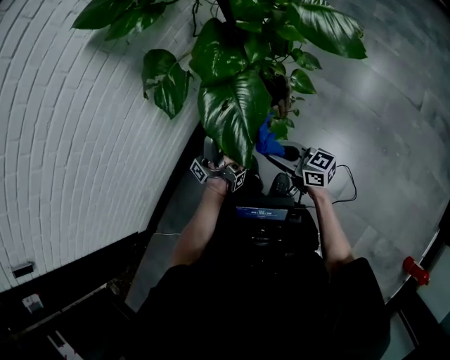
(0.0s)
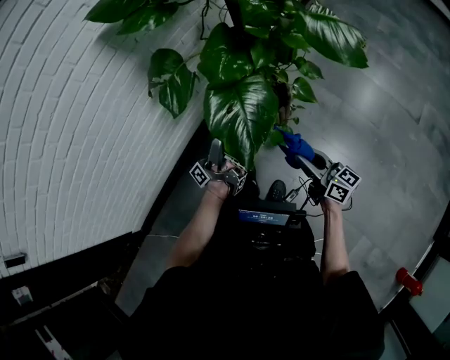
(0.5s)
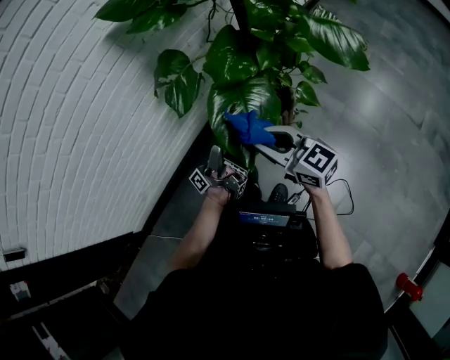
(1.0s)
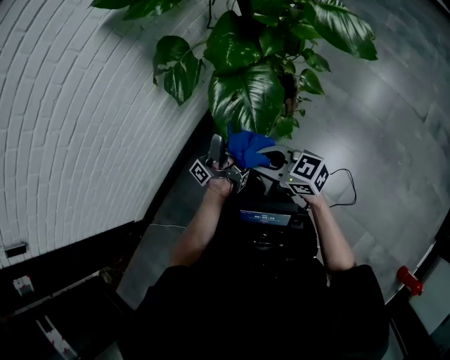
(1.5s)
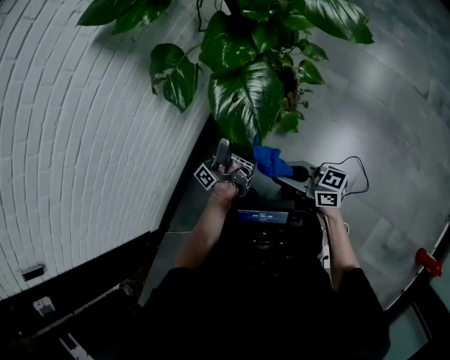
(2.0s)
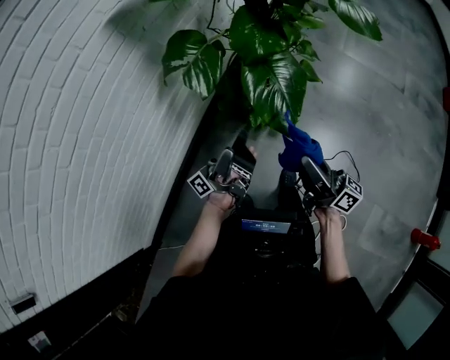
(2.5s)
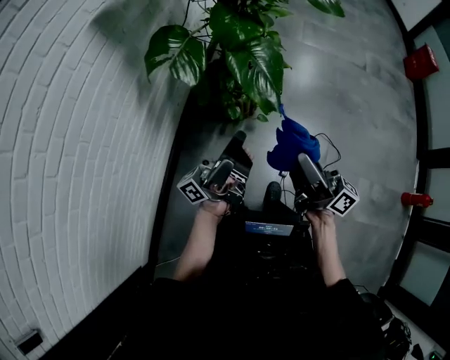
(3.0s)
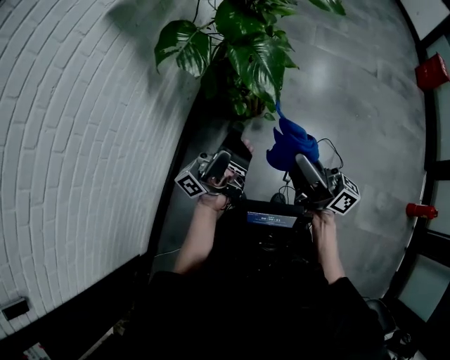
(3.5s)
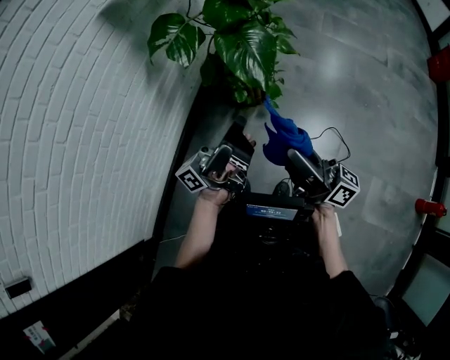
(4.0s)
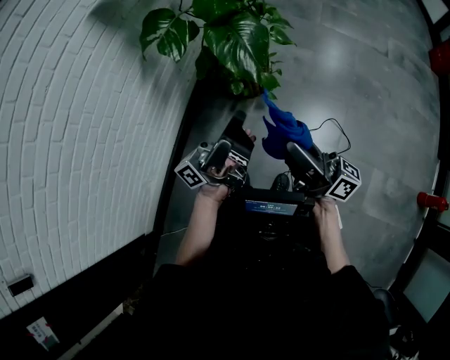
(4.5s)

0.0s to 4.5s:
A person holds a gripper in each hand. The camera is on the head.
0.0s to 2.0s: The right gripper travels upward and back again, roughly 15 cm each way.
2.0s to 4.5s: The right gripper ends up approximately 25 cm from where it was, and rotates about 40 degrees.

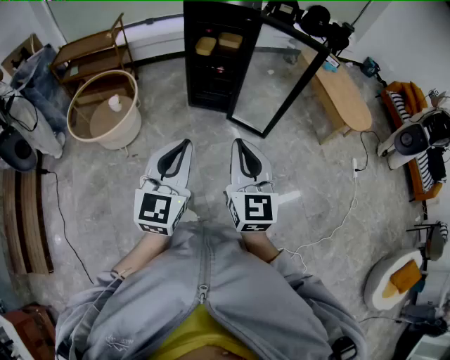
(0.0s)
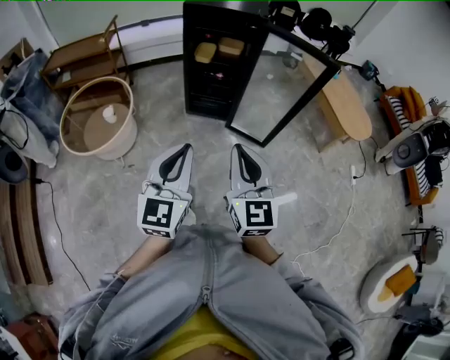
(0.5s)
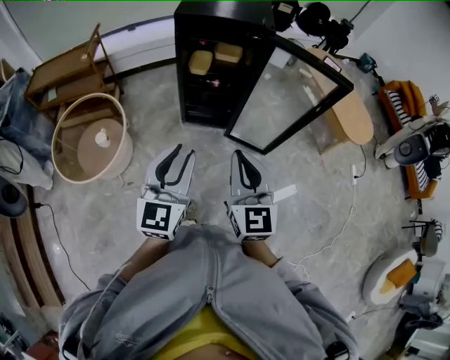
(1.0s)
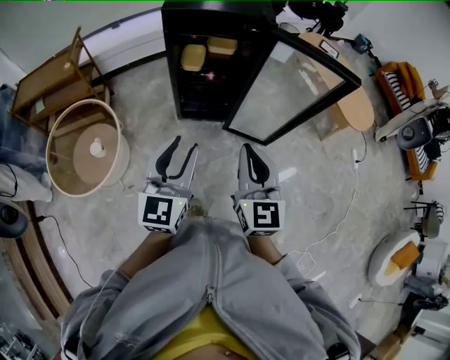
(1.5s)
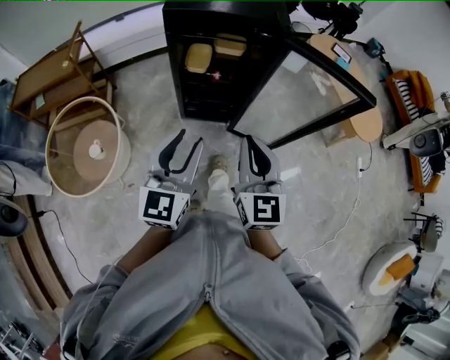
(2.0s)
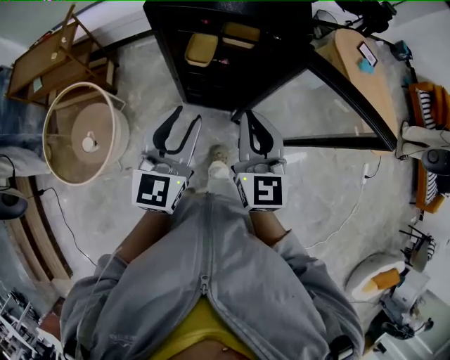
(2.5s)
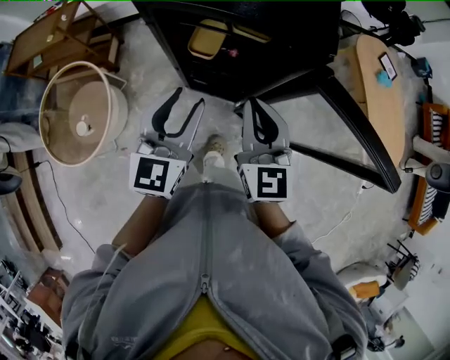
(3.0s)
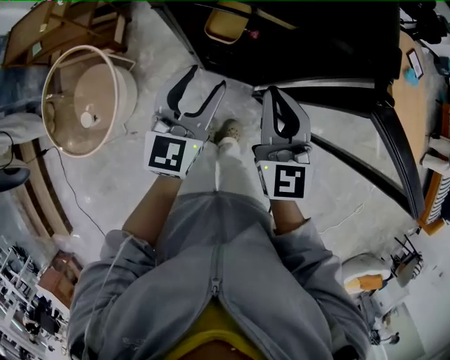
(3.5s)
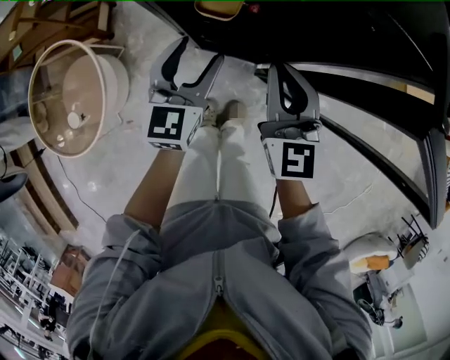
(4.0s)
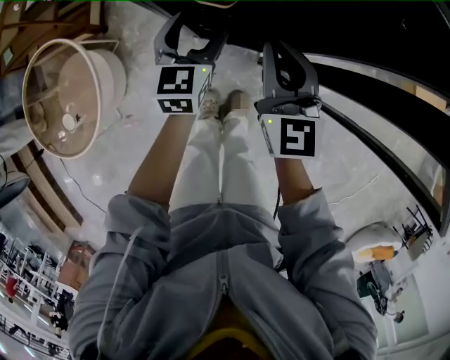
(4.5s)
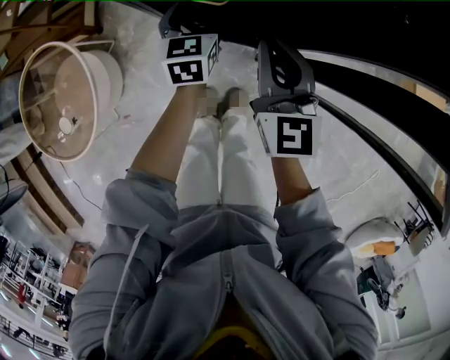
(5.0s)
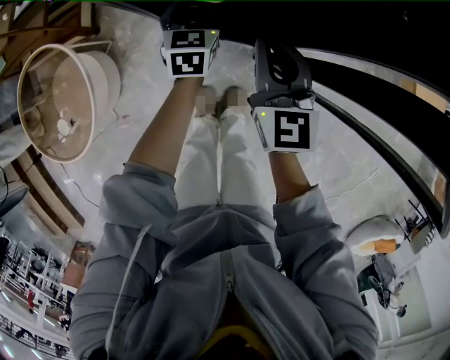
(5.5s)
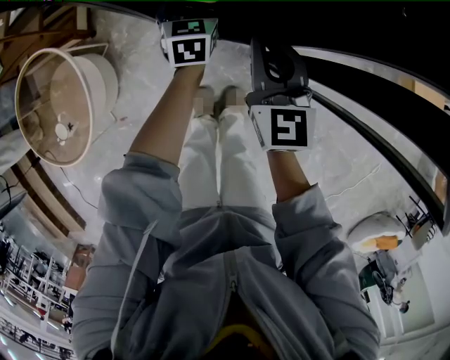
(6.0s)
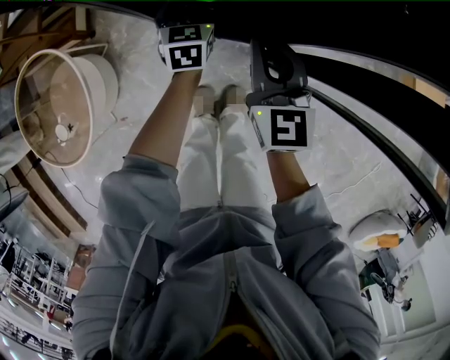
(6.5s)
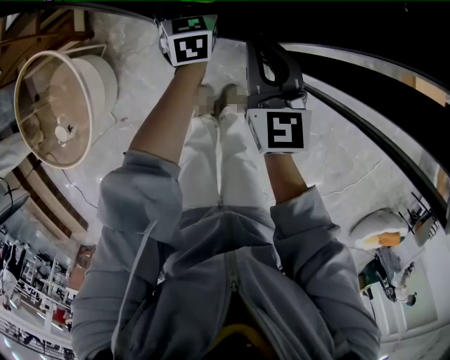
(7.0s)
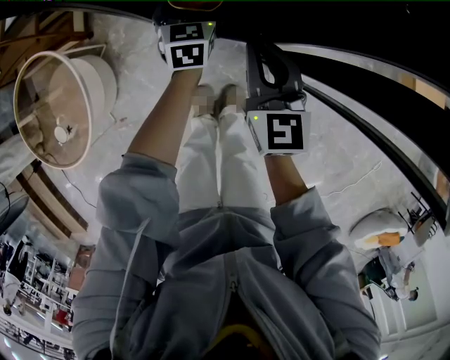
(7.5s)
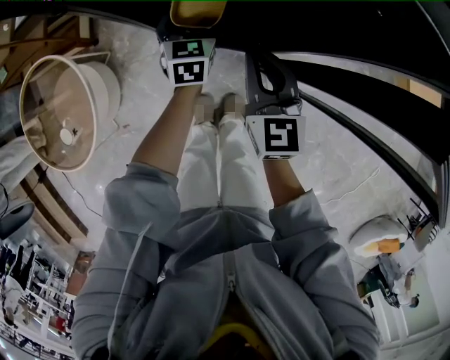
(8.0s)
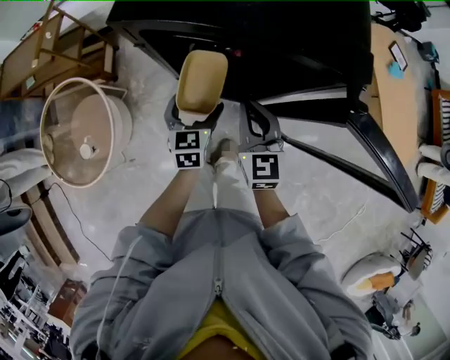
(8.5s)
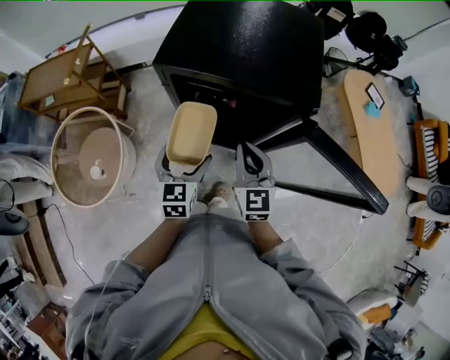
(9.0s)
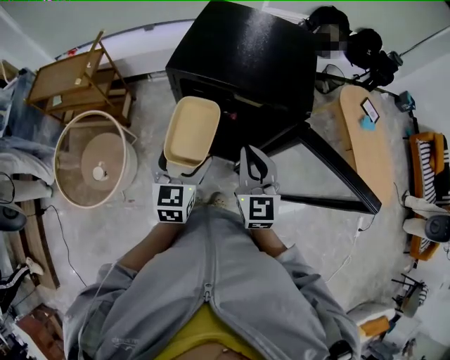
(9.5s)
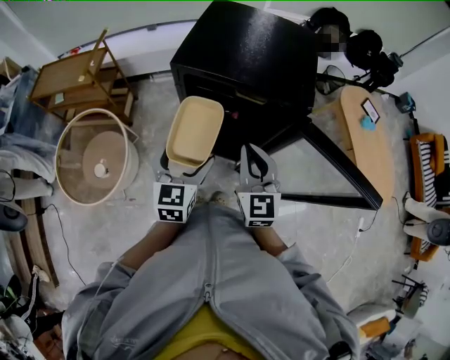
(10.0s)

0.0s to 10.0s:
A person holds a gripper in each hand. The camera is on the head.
0.0s to 2.0s: Both grippers are carried forward, some 40 cm.
2.0s to 4.0s: Both grippers move forward and downward, some 40 cm.
4.0s to 6.0s: The left gripper goes roughly 20 cm downward and forward, rotates about 20 degrees, and opens its fingers, while the right gripper moves downward, approximately 10 cm.
6.0s to 8.0s: The grippers stay close to where they were, moving slightly.
8.0s to 10.0s: The left gripper moves upward and backward, roughly 40 cm, while the right gripper travels upward by approximately 25 cm.

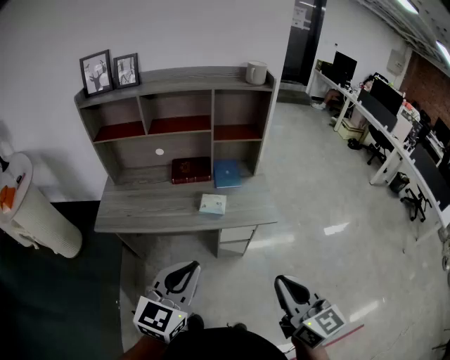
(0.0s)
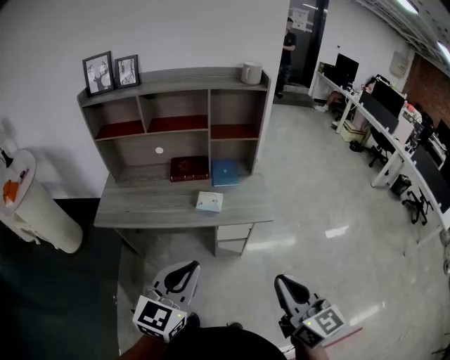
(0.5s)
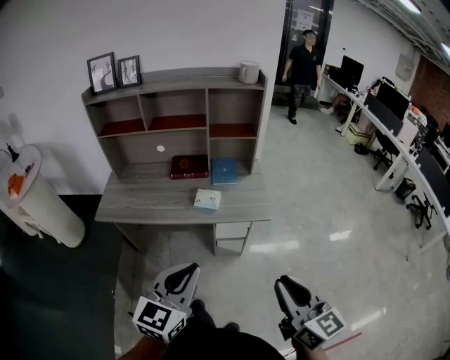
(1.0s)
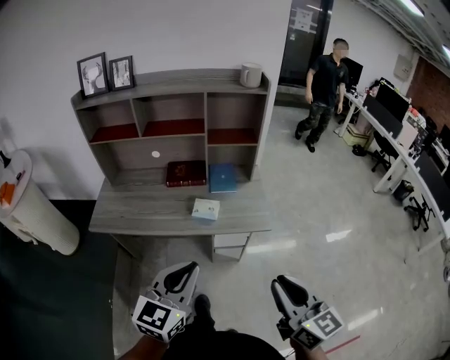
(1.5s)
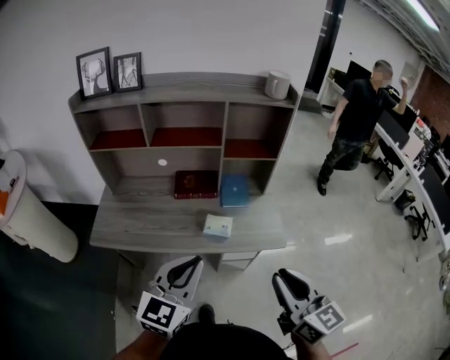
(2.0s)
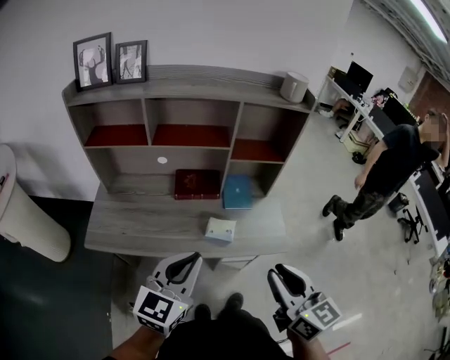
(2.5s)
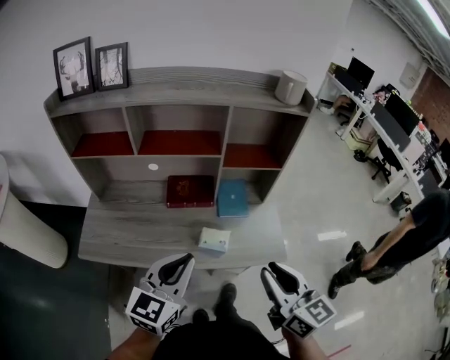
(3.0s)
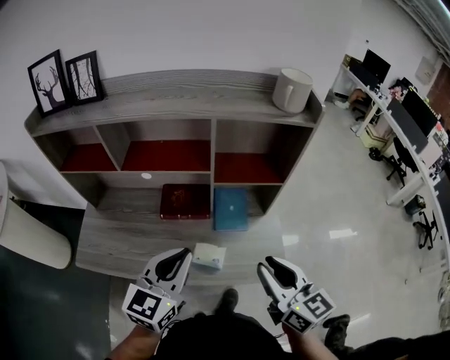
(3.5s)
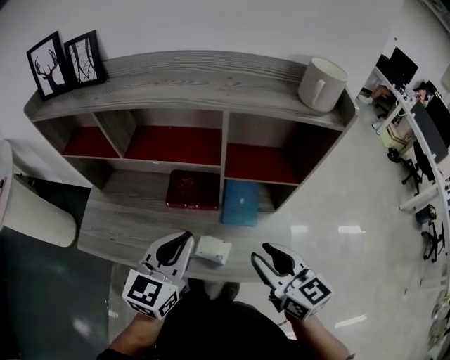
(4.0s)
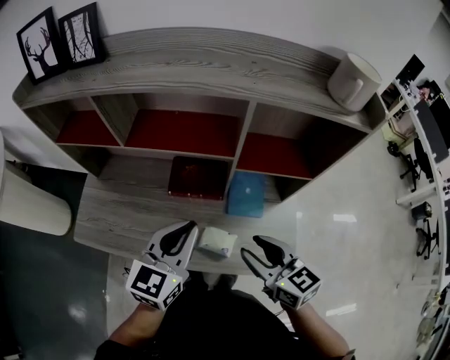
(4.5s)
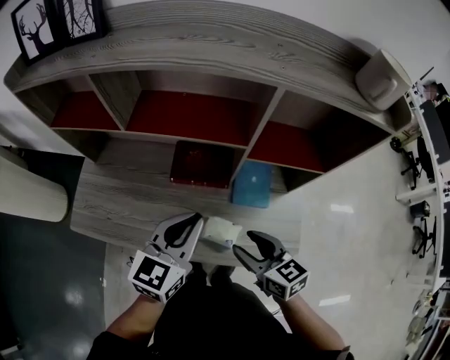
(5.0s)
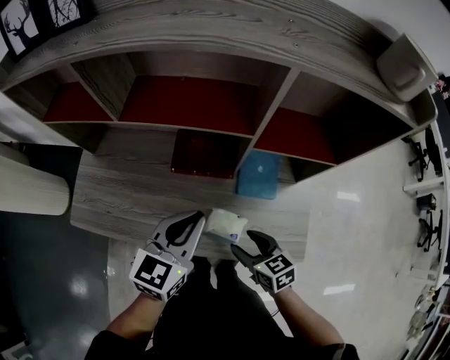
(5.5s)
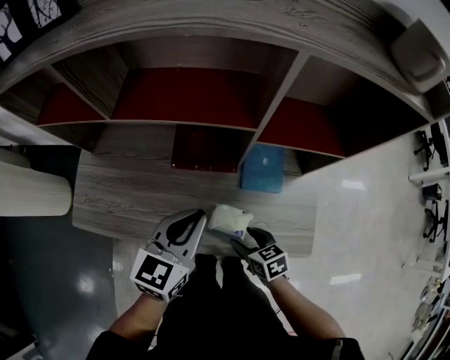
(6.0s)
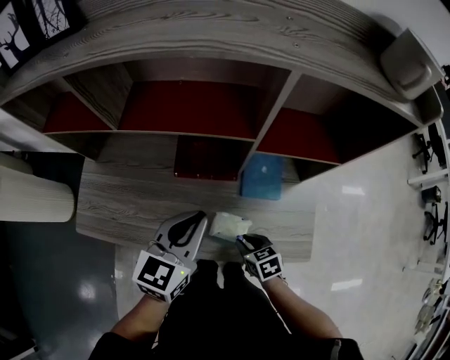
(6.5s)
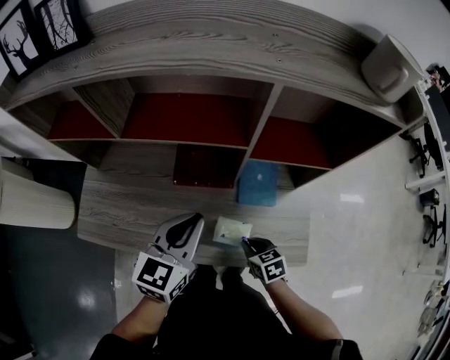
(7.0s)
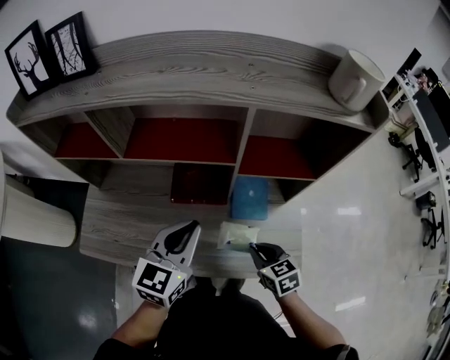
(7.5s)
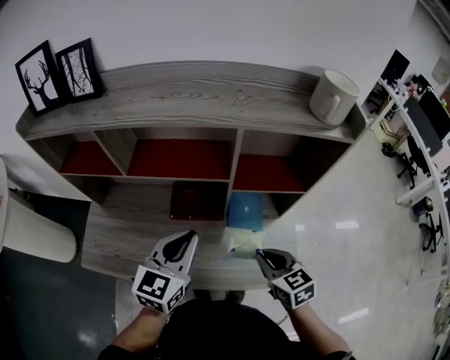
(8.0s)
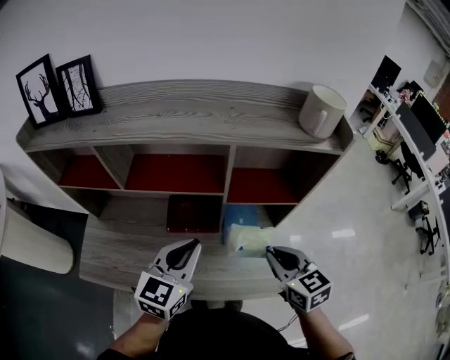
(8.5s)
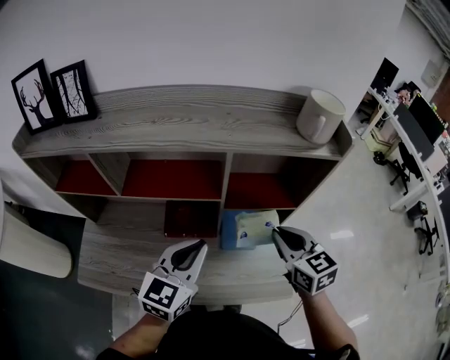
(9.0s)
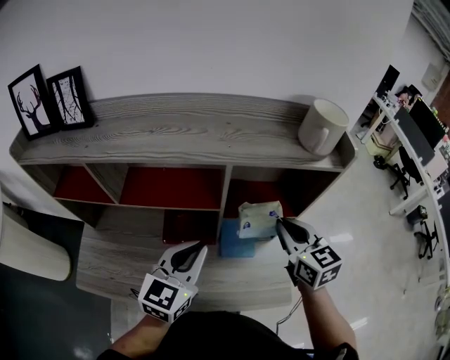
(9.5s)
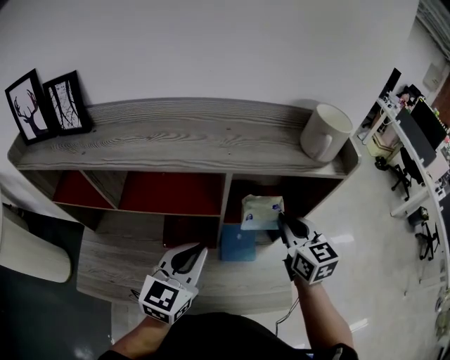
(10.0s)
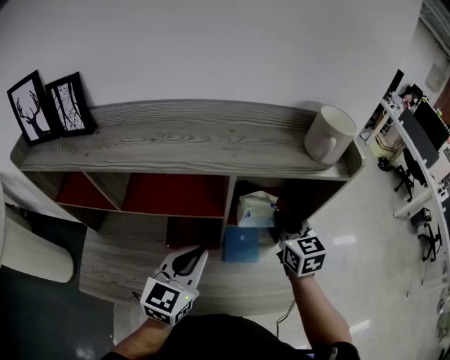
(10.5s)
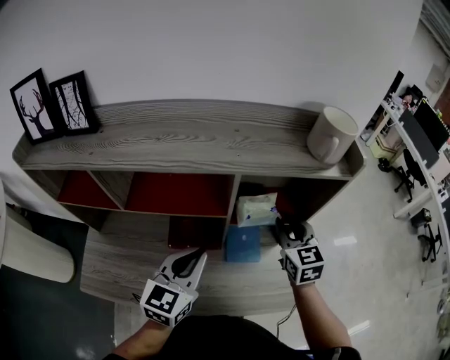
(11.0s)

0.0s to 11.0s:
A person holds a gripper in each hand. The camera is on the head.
0.0s to 2.0s: The grippers both shift forward by approximately 15 cm.
2.0s to 3.5s: Both grippers move forward, approximately 25 cm.
3.5s to 5.5s: The right gripper goes about 25 cm downward, changes its angle by some 40 degrees, and opens its fingers; the left gripper heads downward and forward, covering approximately 15 cm.
5.5s to 7.5s: The left gripper changes place by roughly 5 cm, while the right gripper goes approximately 5 cm to the right, goes downward and returns, some 10 cm each way, and closes.
7.5s to 9.0s: The right gripper is displaced upward and forward by roughly 20 cm, and swivels roughly 20 degrees, while the left gripper changes place by approximately 5 cm.
9.0s to 11.0s: The right gripper moves forward, approximately 10 cm.

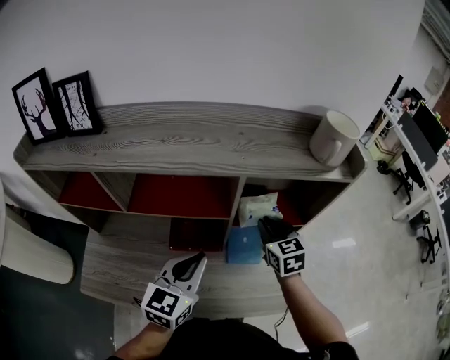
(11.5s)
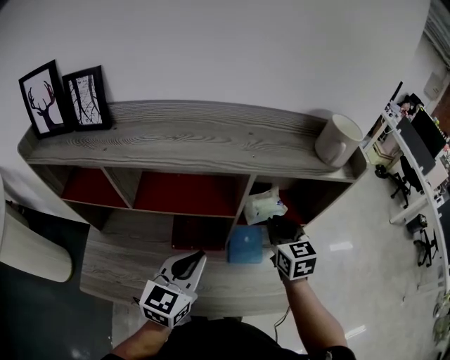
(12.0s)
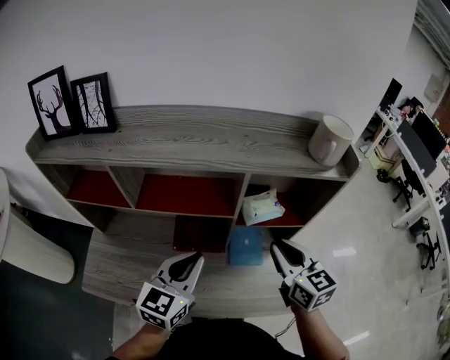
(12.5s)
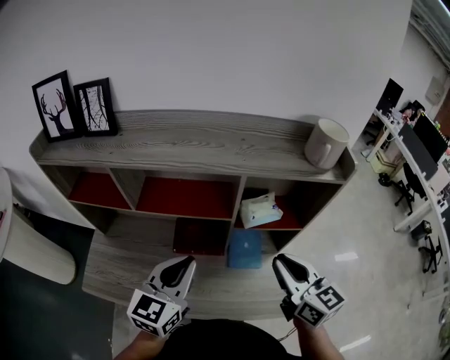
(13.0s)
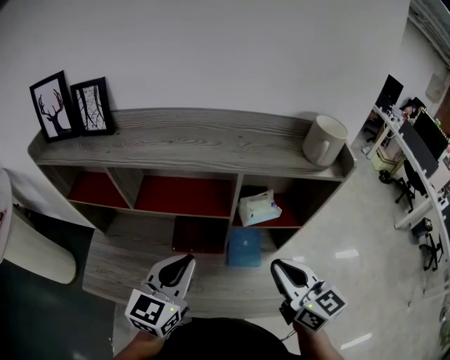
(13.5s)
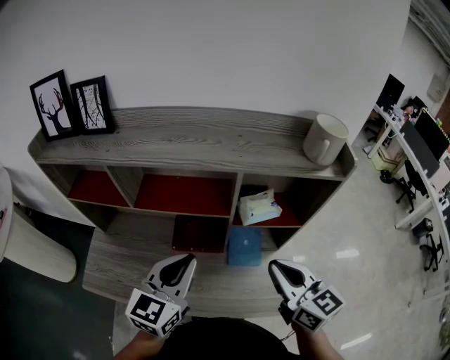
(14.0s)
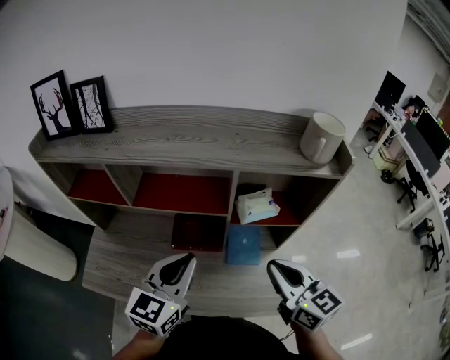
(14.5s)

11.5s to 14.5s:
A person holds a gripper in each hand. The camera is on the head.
11.5s to 13.0s: The left gripper ends up roughly 5 cm from where it was. Meanwhile the right gripper moves backward and upward, about 20 cm, and rotates some 30 degrees.
13.0s to 14.5s: The grippers stay close to where they were, moving slightly.
